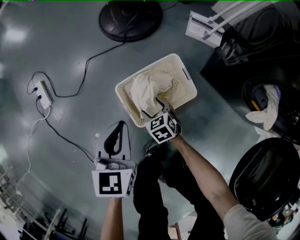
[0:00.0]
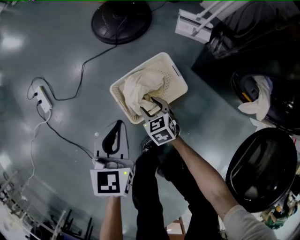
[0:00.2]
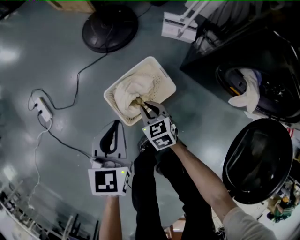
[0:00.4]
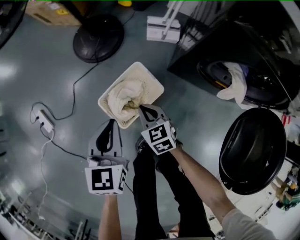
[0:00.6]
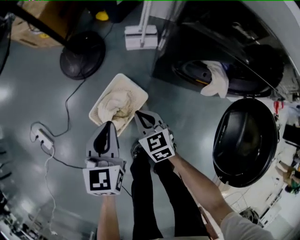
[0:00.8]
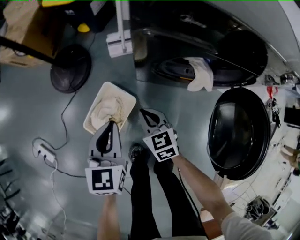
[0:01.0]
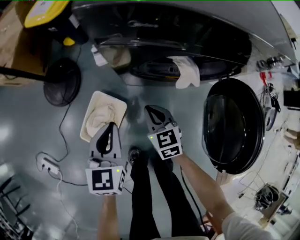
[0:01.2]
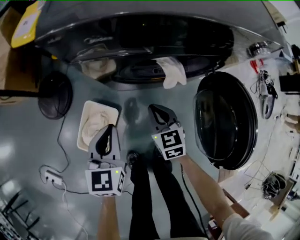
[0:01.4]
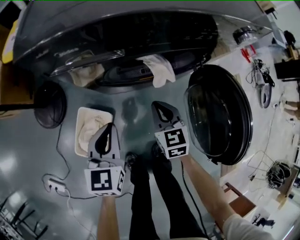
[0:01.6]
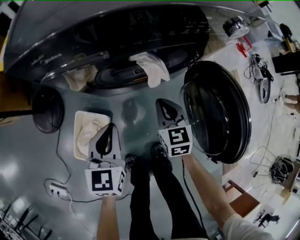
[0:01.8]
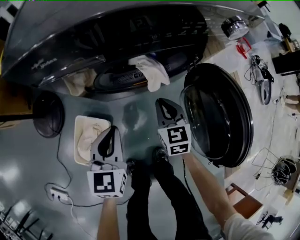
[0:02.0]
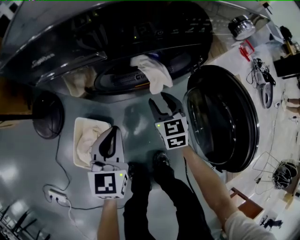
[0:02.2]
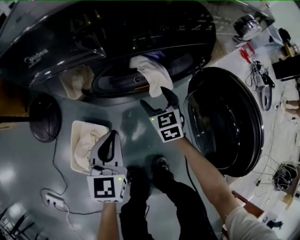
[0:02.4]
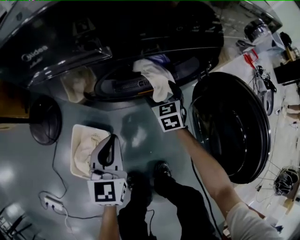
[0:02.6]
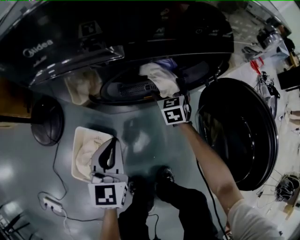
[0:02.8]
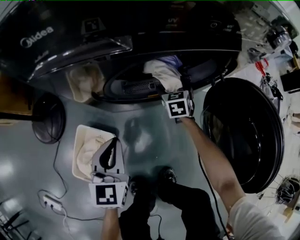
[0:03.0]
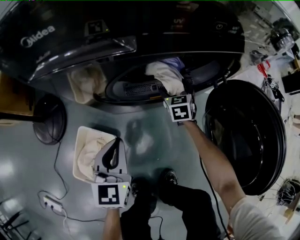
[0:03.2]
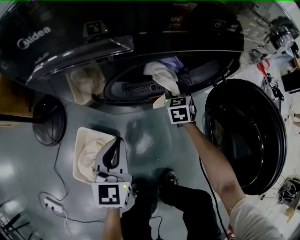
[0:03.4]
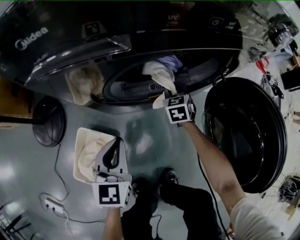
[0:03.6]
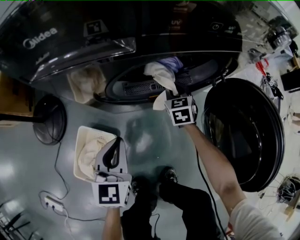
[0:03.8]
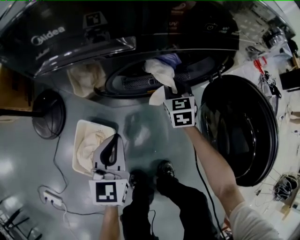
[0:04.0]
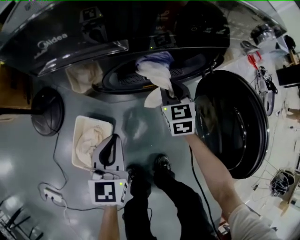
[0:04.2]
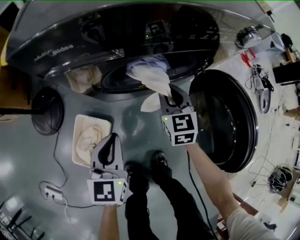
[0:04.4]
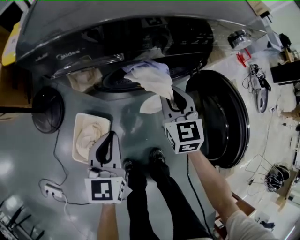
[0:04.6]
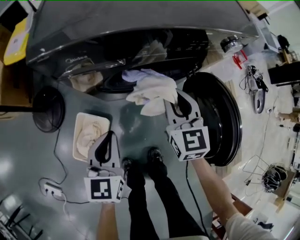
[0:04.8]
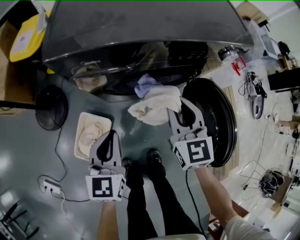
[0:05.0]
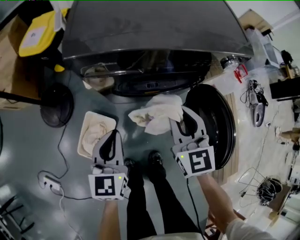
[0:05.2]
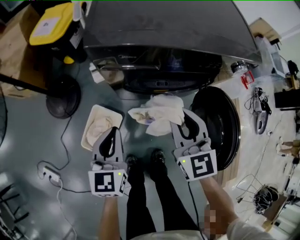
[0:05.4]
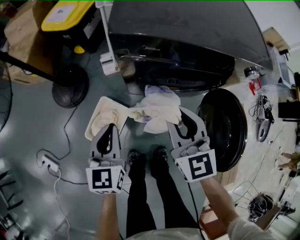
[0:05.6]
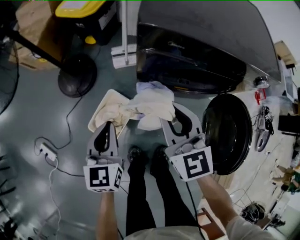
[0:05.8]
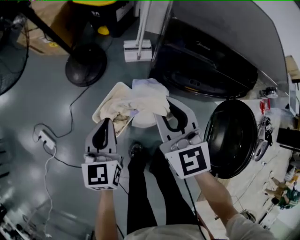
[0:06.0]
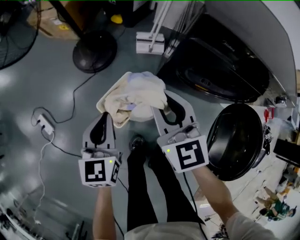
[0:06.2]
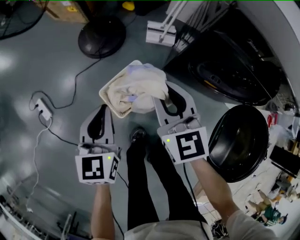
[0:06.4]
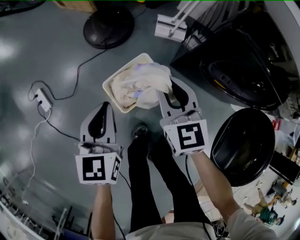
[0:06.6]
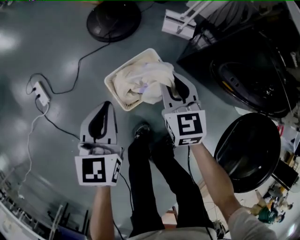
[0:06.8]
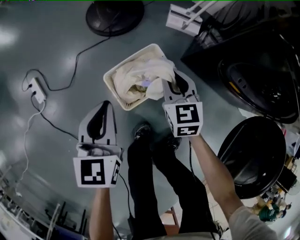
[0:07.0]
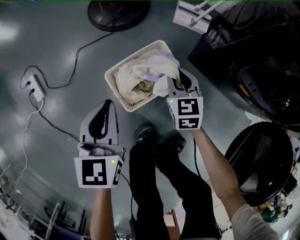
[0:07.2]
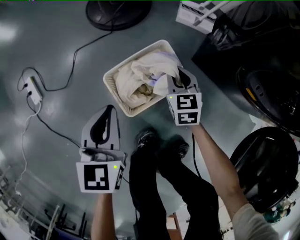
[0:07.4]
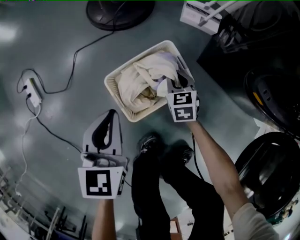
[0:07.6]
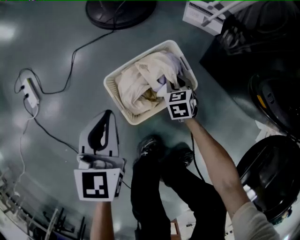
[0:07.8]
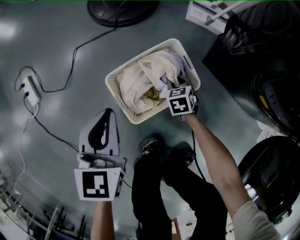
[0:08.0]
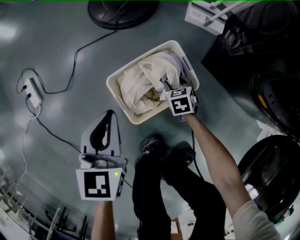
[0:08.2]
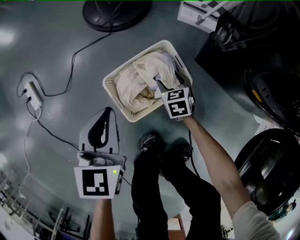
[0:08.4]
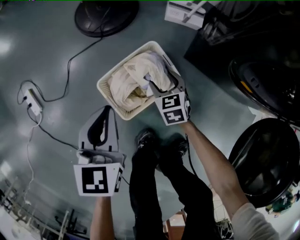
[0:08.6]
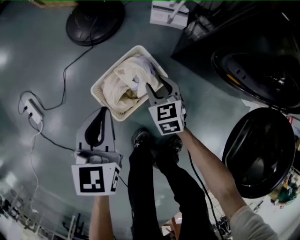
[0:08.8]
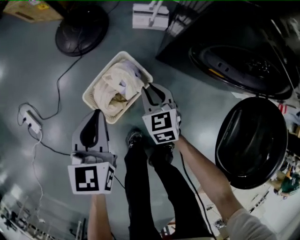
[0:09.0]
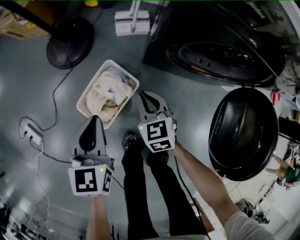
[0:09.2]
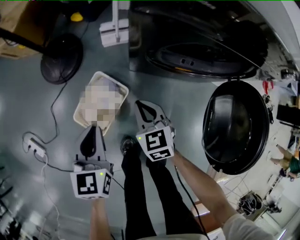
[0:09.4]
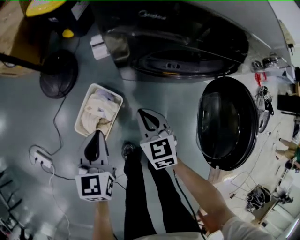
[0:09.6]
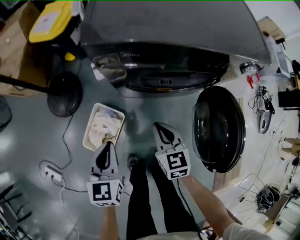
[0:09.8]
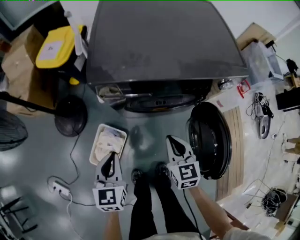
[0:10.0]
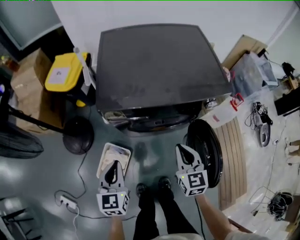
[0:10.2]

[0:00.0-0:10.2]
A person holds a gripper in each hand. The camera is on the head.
0:00.0 to 0:01.4: The left gripper ends up some 40 cm from where it was, and changes its angle by approximately 40 degrees; the right gripper changes place by some 50 cm, turns by roughly 60 degrees, and closes its fingers.
0:01.4 to 0:03.0: The right gripper travels forward, downward and to the right by roughly 30 cm, changes its angle by roughly 20 degrees, and opens up. Meanwhile the left gripper is displaced downward by about 10 cm.
0:03.0 to 0:04.4: The right gripper heads upward and backward, covering about 25 cm, and closes its fingers, while the left gripper heads upward, covering some 10 cm.
0:04.4 to 0:05.8: The left gripper shifts by roughly 20 cm, and changes its angle by approximately 20 degrees; the right gripper changes place by roughly 35 cm, and swivels approximately 30 degrees.
0:05.8 to 0:07.2: The left gripper heads downward and to the left, covering approximately 30 cm, and changes its angle by roughly 20 degrees, while the right gripper moves downward and to the left, about 40 cm, and rotates approximately 30 degrees.
0:07.2 to 0:08.8: The right gripper travels downward and back again, approximately 25 cm each way; the left gripper heads to the right, covering some 5 cm, and moves approximately 10 cm downward and comes back.
0:08.8 to 0:10.2: The right gripper heads upward, covering approximately 50 cm, changes its angle by roughly 50 degrees, and closes. The left gripper is displaced upward by some 30 cm, and changes its angle by roughly 30 degrees.

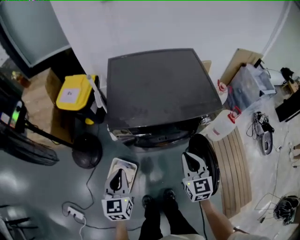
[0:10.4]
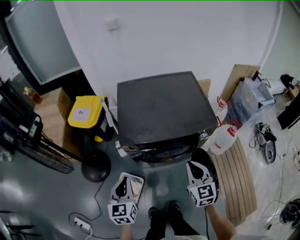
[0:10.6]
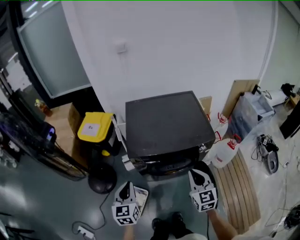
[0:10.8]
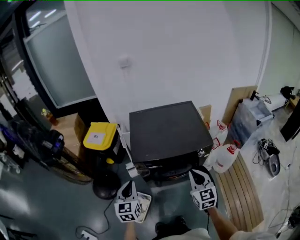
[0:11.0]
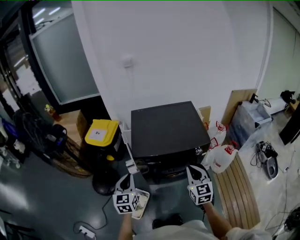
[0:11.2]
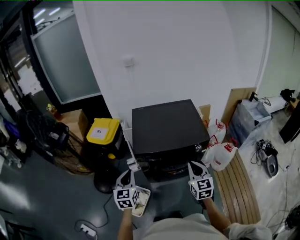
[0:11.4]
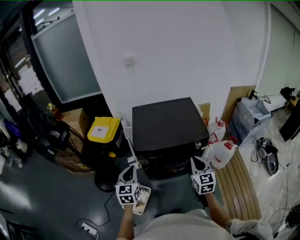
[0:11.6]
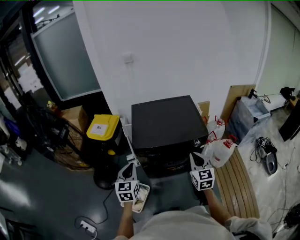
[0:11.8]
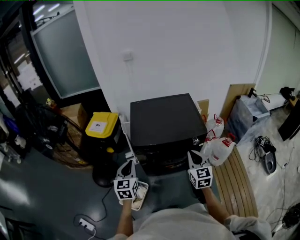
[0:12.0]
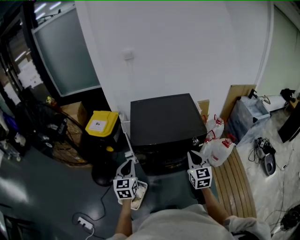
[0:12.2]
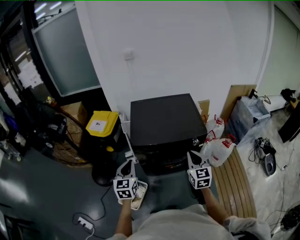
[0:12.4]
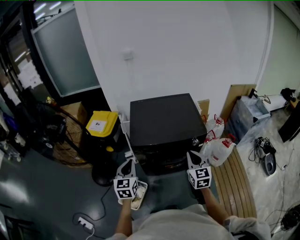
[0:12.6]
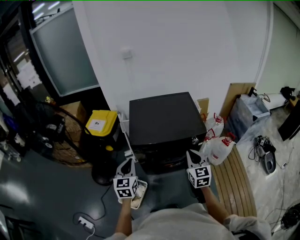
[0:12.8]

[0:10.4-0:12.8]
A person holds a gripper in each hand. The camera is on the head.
0:10.4 to 0:11.6: The two grippers go some 15 cm upward.
0:11.6 to 0:12.8: The grippers stay close to where they were, moving slightly.

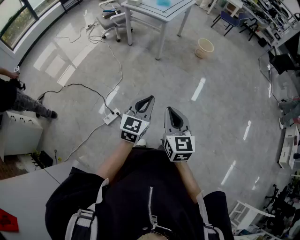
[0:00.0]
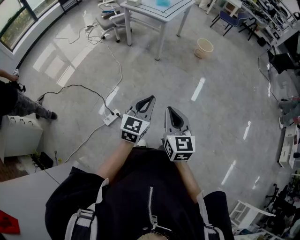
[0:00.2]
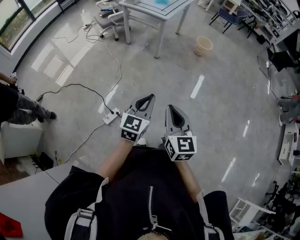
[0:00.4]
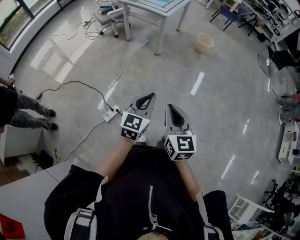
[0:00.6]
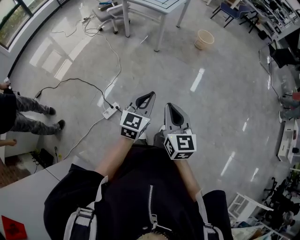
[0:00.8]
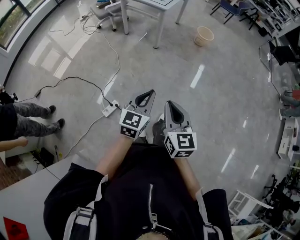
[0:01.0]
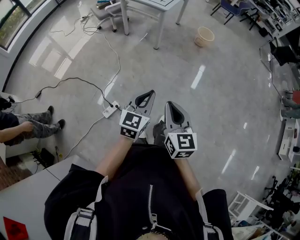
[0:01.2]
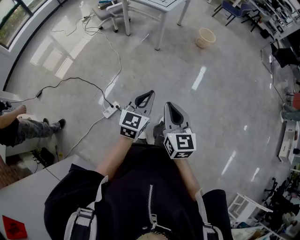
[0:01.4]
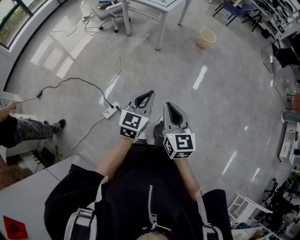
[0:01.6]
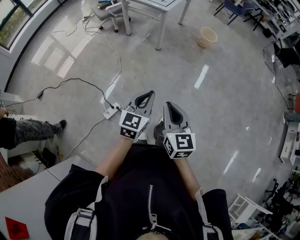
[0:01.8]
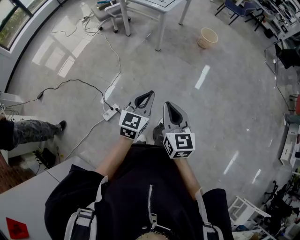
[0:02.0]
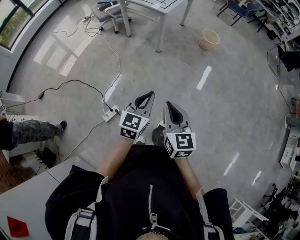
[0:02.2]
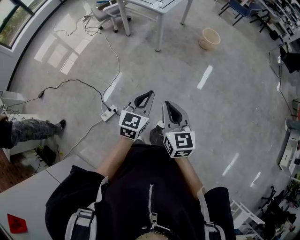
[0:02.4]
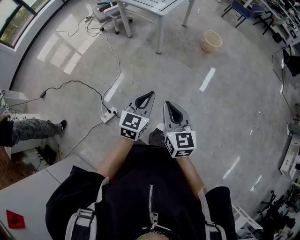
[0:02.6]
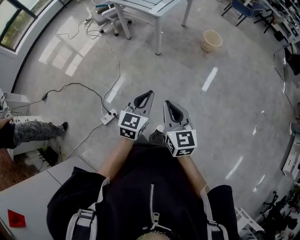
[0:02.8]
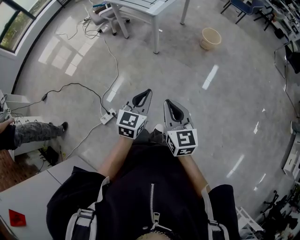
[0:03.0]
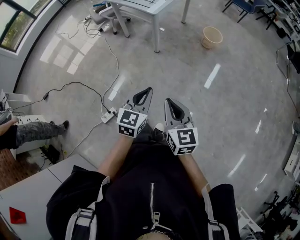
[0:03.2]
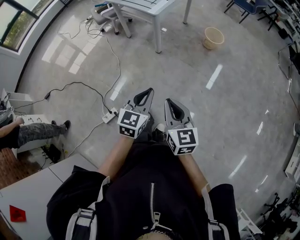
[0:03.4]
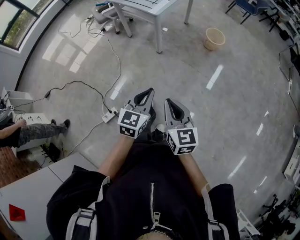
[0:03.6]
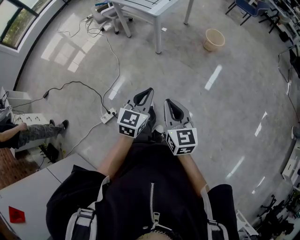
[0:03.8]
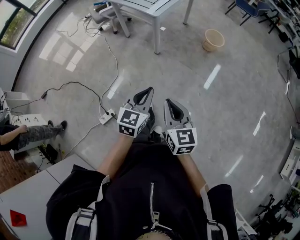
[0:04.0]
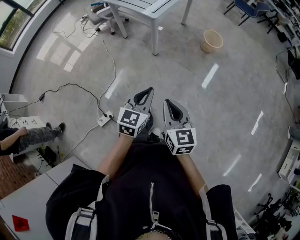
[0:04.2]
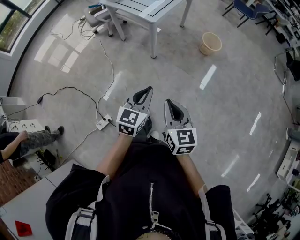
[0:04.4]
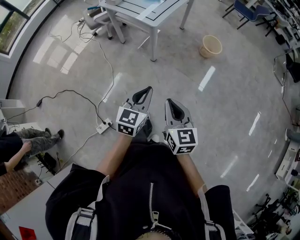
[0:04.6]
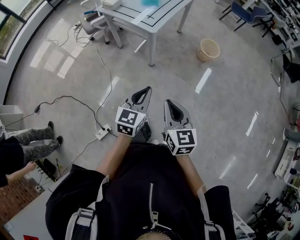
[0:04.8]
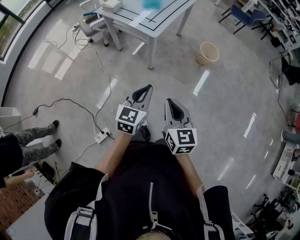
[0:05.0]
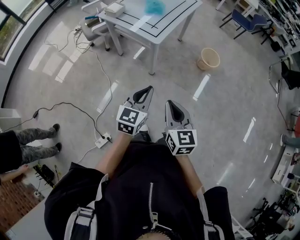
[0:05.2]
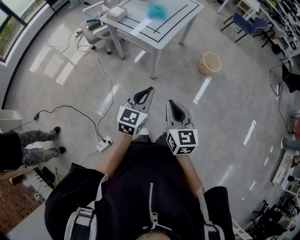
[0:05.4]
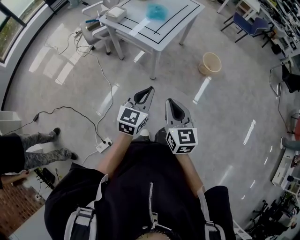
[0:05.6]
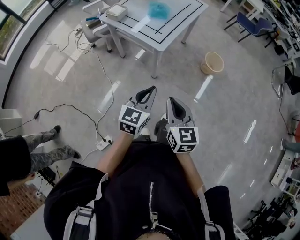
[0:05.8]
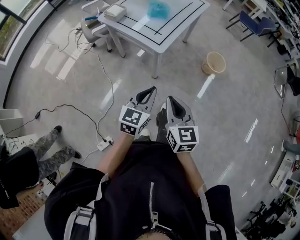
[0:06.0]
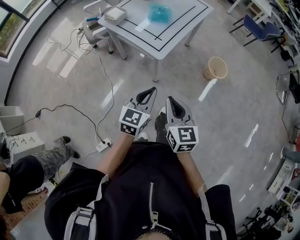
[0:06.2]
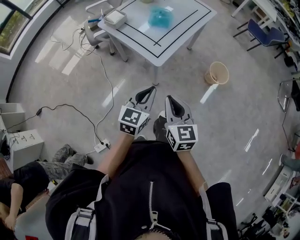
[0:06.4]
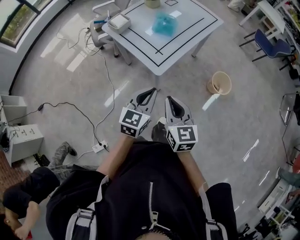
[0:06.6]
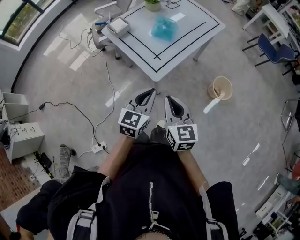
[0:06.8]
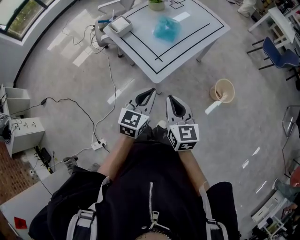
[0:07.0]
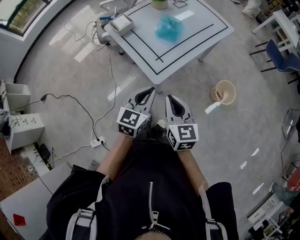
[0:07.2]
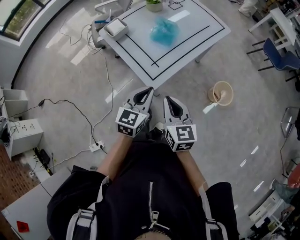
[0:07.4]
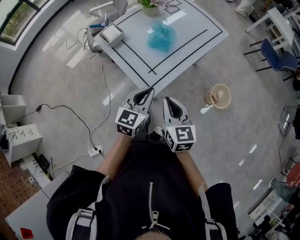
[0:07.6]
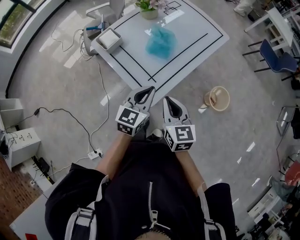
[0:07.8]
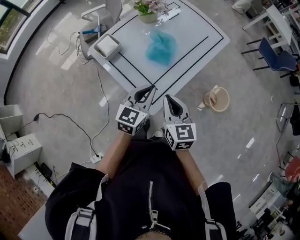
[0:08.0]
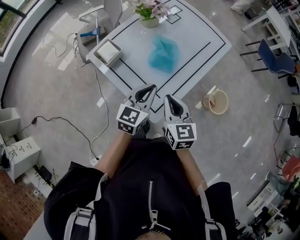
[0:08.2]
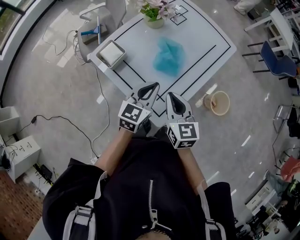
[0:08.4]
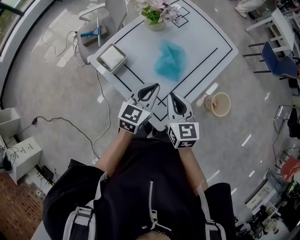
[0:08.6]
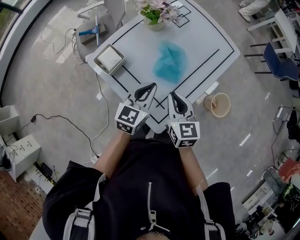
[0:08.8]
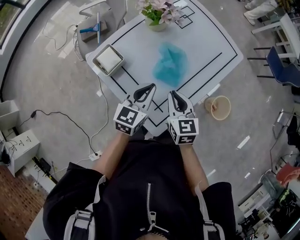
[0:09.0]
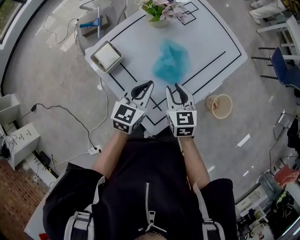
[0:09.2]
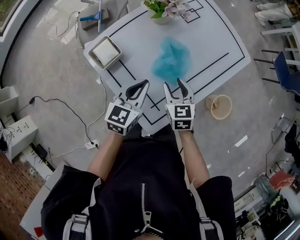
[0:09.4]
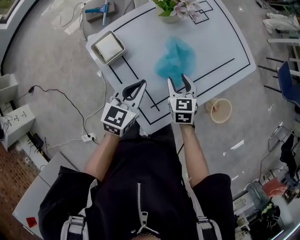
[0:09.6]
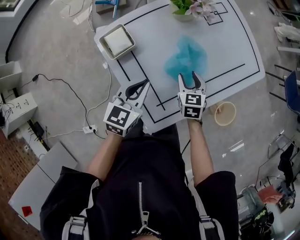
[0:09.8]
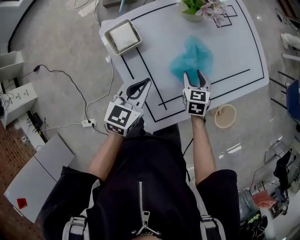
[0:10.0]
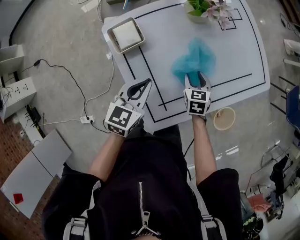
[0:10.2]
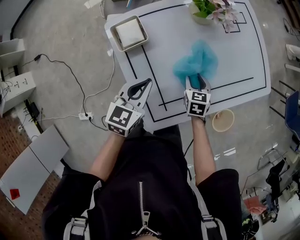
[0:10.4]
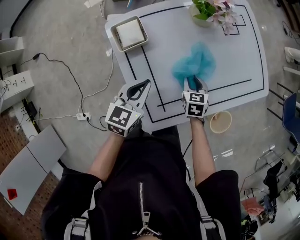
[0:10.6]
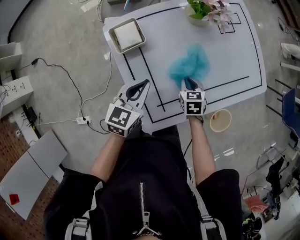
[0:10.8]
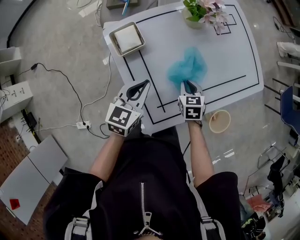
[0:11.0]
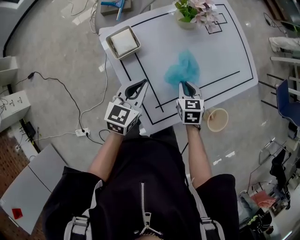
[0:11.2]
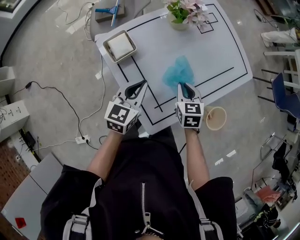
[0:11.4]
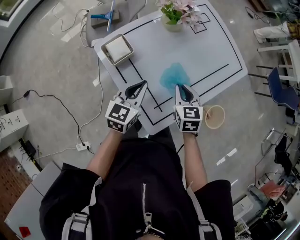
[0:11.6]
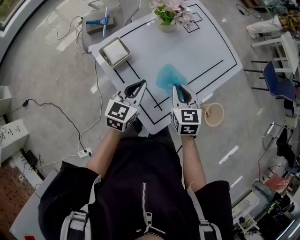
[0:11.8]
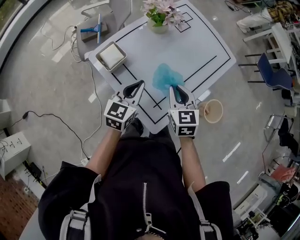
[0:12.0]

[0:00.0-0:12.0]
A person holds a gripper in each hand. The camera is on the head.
0:00.0 to 0:01.6: The grippers move only a little.
0:01.6 to 0:03.0: Both grippers move forward and to the right, roughly 25 cm.
0:03.0 to 0:04.4: Both grippers move forward, about 15 cm.
0:04.4 to 0:06.0: Both grippers move forward, roughly 25 cm.
0:06.0 to 0:07.6: Both grippers move forward, about 30 cm.
0:07.6 to 0:09.0: The grippers both shift forward by approximately 25 cm.
0:09.0 to 0:10.4: The left gripper moves to the left, some 5 cm, and rotates roughly 20 degrees; the right gripper is displaced downward and forward by roughly 20 cm, swivels roughly 20 degrees, and opens its fingers.
0:10.4 to 0:12.0: The left gripper travels upward by approximately 5 cm, and rotates about 20 degrees. The right gripper heads upward and backward, covering approximately 20 cm, turns by about 20 degrees, and closes.
